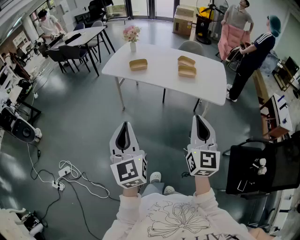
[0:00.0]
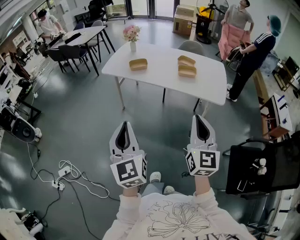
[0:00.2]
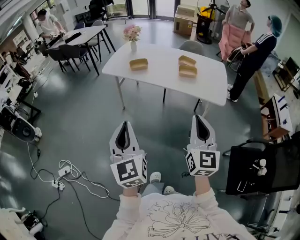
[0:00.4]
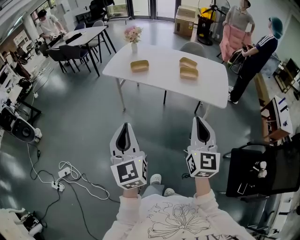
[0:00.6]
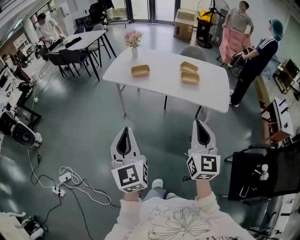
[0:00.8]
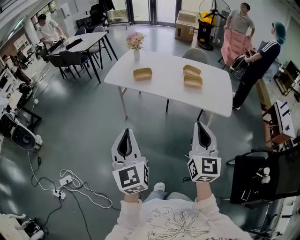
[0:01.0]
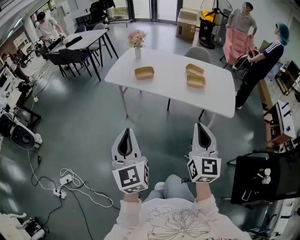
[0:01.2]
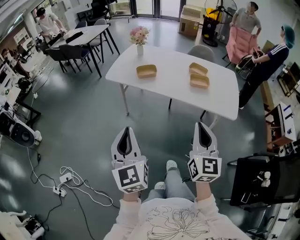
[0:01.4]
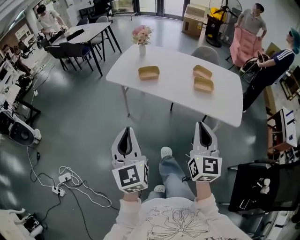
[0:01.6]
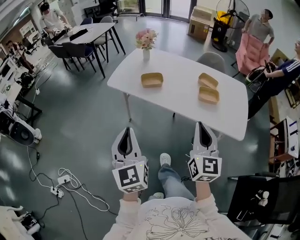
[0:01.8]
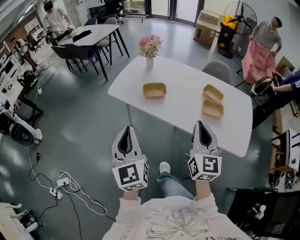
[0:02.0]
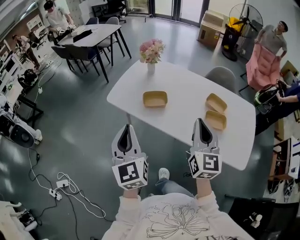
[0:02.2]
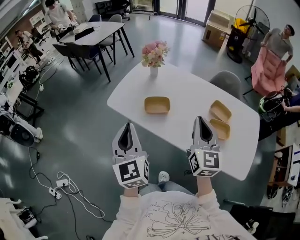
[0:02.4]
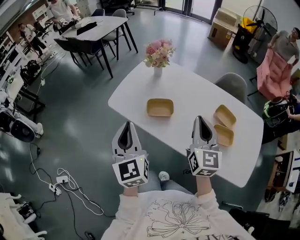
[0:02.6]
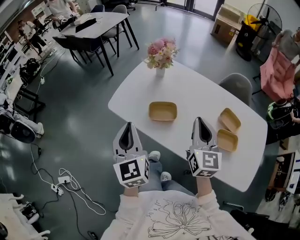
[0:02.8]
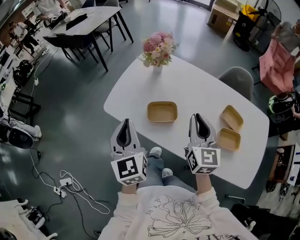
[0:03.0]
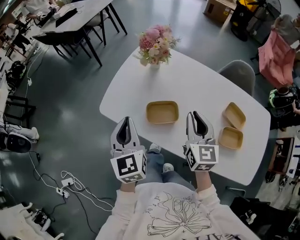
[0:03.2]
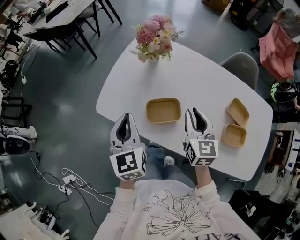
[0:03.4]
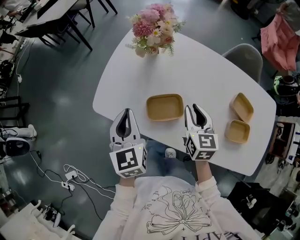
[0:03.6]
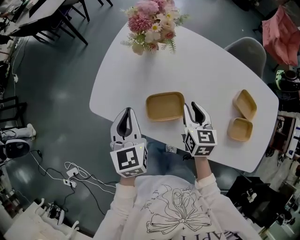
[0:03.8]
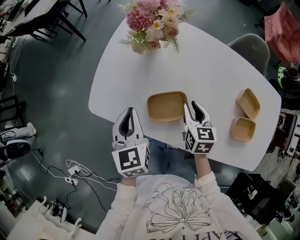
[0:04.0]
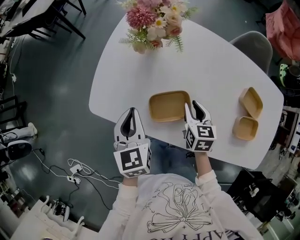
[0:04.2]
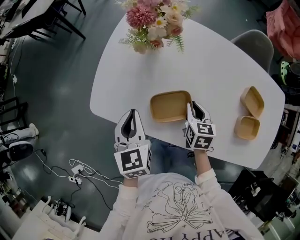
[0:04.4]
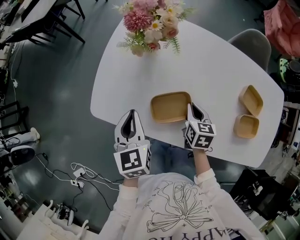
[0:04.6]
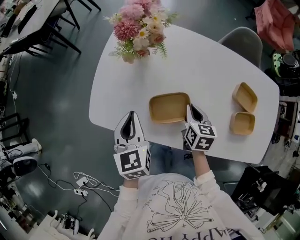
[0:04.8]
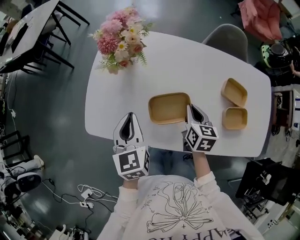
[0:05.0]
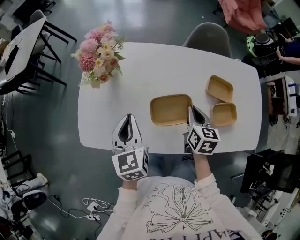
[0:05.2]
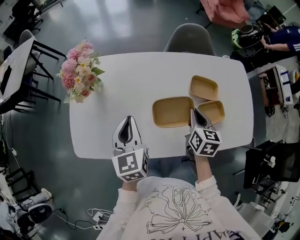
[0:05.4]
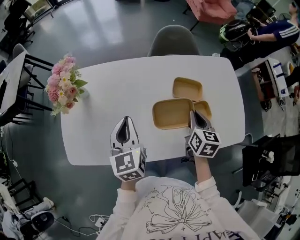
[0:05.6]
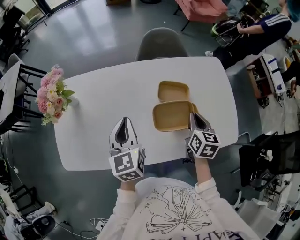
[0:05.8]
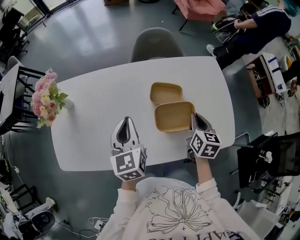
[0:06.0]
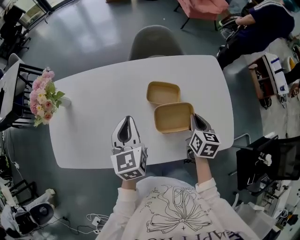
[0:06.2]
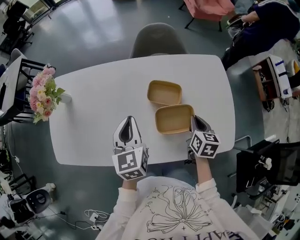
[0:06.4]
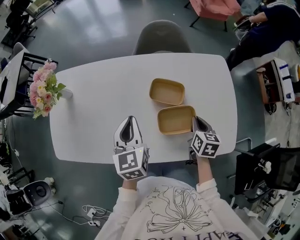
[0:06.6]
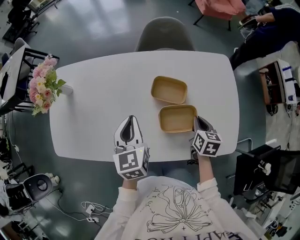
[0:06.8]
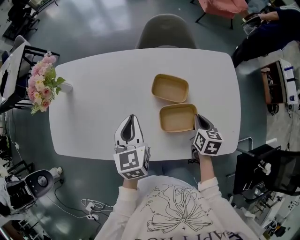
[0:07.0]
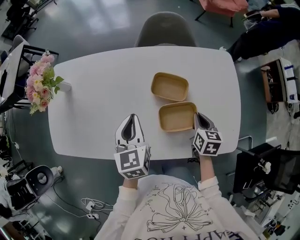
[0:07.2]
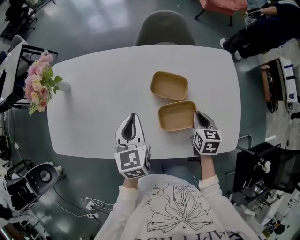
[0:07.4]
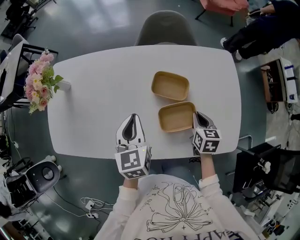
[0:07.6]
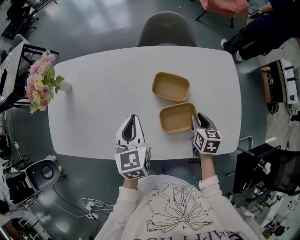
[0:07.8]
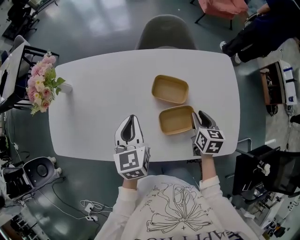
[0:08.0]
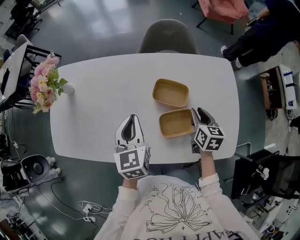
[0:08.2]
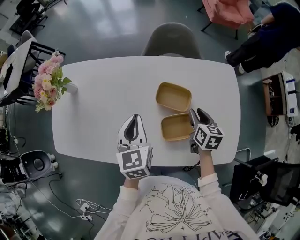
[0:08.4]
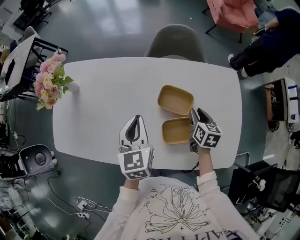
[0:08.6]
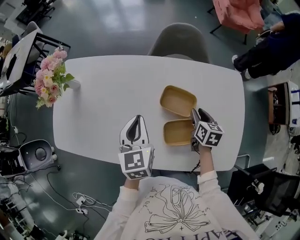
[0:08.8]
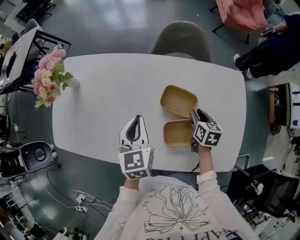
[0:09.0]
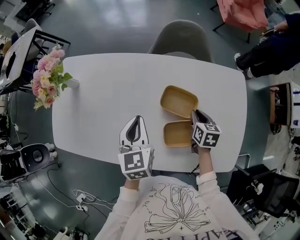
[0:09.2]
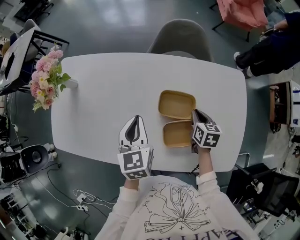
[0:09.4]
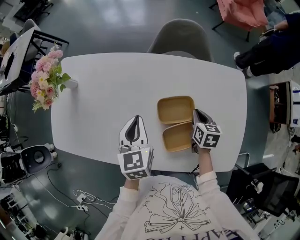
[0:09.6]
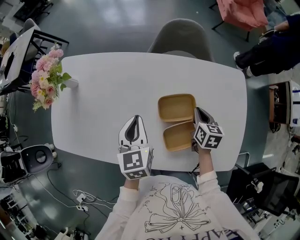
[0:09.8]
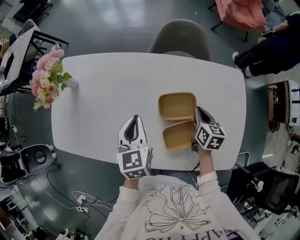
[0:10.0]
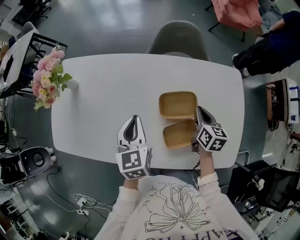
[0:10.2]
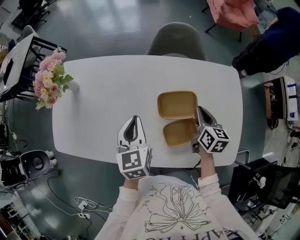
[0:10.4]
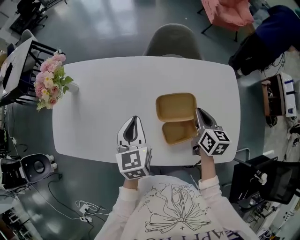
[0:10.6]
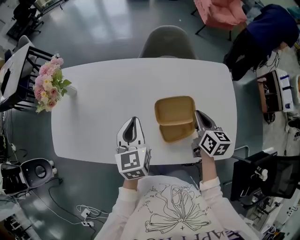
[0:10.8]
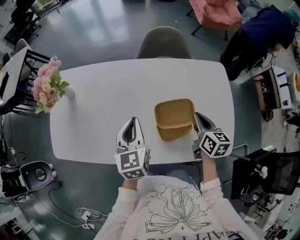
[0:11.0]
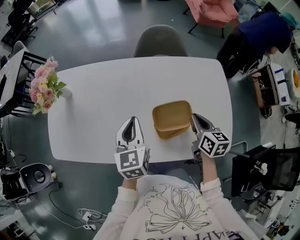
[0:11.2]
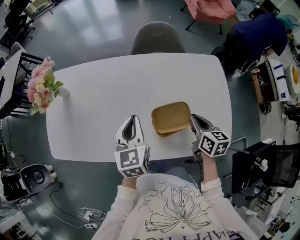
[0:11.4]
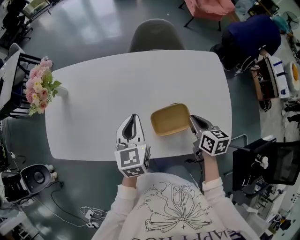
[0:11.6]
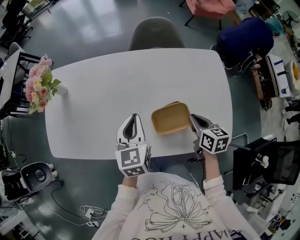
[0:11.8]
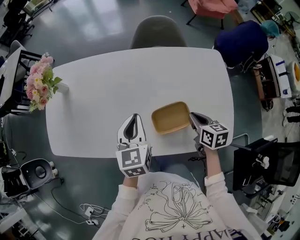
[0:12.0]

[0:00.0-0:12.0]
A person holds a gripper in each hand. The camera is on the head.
0:00.0 to 0:01.6: The grippers both shift forward by some 15 cm.
0:01.6 to 0:03.0: The pair of grippers is taken forward, about 50 cm.
0:03.0 to 0:04.4: The left gripper goes some 20 cm downward and forward, and swivels about 30 degrees. Meanwhile the right gripper travels downward by about 25 cm, and tips its fingers downward by approximately 40 degrees.
0:04.4 to 0:06.0: The left gripper ends up approximately 40 cm from where it was, and turns by approximately 30 degrees, while the right gripper shifts by some 50 cm, and swivels about 40 degrees.
0:06.0 to 0:07.6: The right gripper is displaced downward by roughly 10 cm, while the left gripper heads downward, covering some 5 cm.
0:07.6 to 0:09.0: The right gripper goes some 10 cm forward, and opens its fingers.
0:09.0 to 0:10.4: The right gripper travels upward by approximately 10 cm, and closes its fingers.
0:10.4 to 0:12.0: The left gripper travels backward by roughly 5 cm, while the right gripper travels backward by roughly 10 cm.

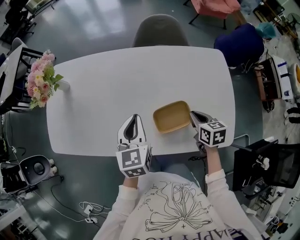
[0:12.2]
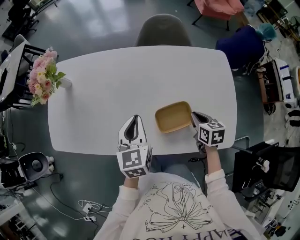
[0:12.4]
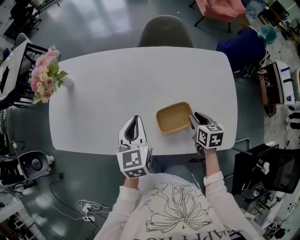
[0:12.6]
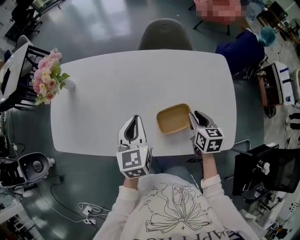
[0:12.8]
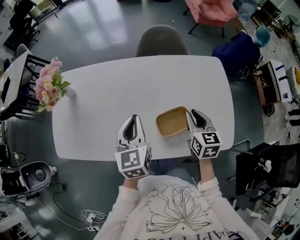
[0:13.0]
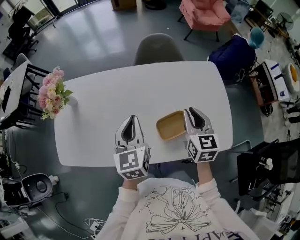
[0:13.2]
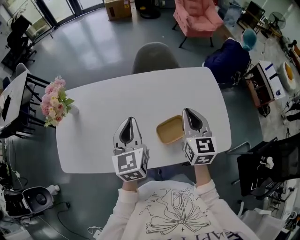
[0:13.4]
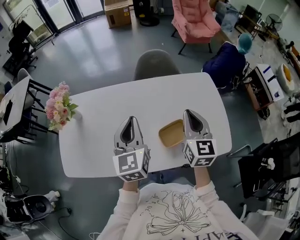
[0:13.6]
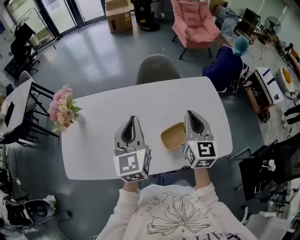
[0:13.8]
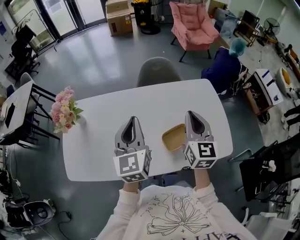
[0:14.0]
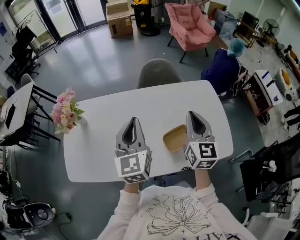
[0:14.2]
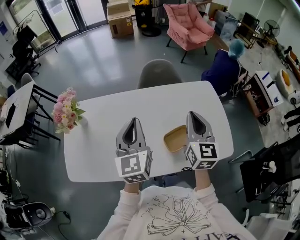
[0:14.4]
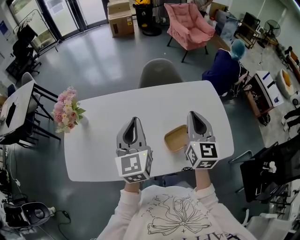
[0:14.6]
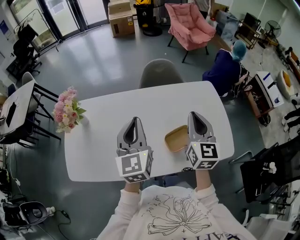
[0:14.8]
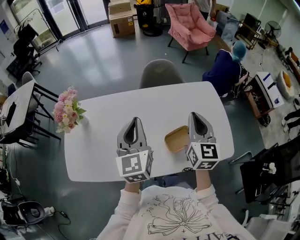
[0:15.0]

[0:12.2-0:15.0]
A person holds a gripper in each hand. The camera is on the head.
0:12.2 to 0:13.6: The right gripper moves upward, approximately 25 cm, angles its fingers upward, by approximately 30 degrees, and opens, then closes again; the left gripper goes some 15 cm upward.
0:13.6 to 0:15.0: There are only small adjustments of the grippers.

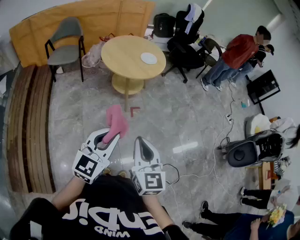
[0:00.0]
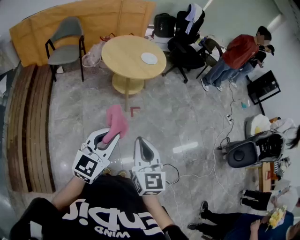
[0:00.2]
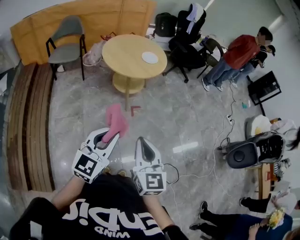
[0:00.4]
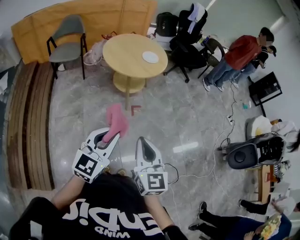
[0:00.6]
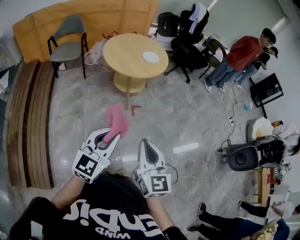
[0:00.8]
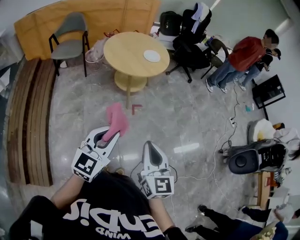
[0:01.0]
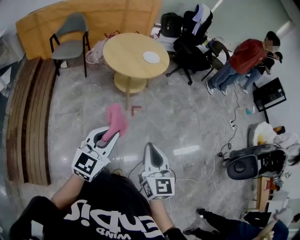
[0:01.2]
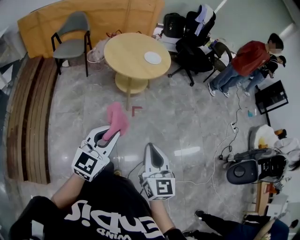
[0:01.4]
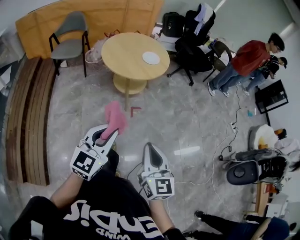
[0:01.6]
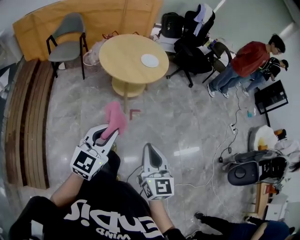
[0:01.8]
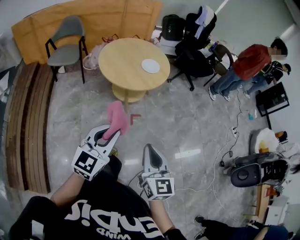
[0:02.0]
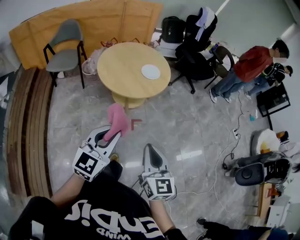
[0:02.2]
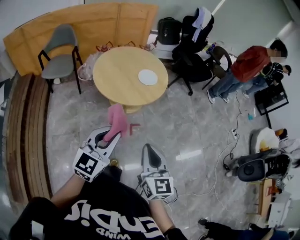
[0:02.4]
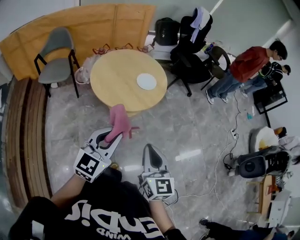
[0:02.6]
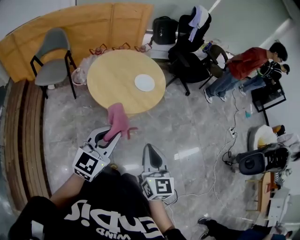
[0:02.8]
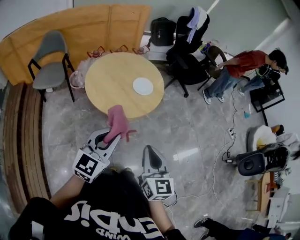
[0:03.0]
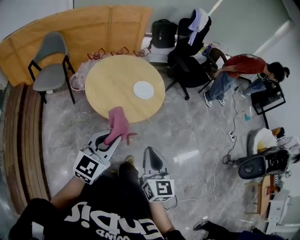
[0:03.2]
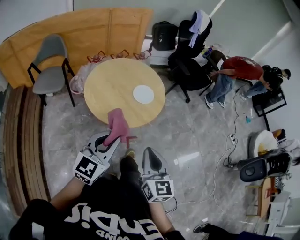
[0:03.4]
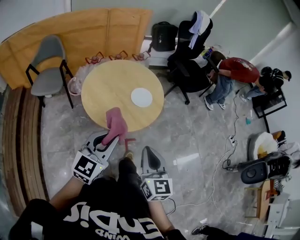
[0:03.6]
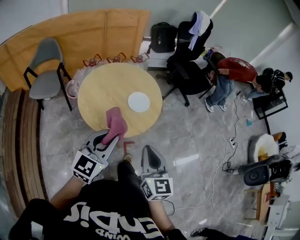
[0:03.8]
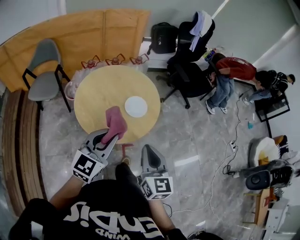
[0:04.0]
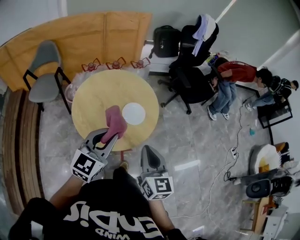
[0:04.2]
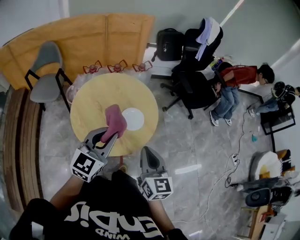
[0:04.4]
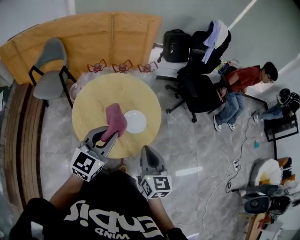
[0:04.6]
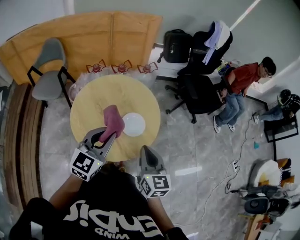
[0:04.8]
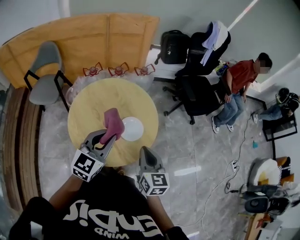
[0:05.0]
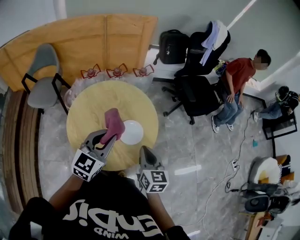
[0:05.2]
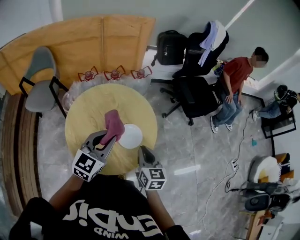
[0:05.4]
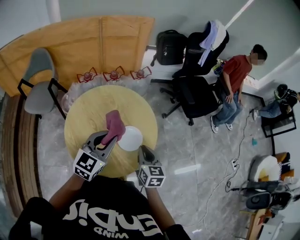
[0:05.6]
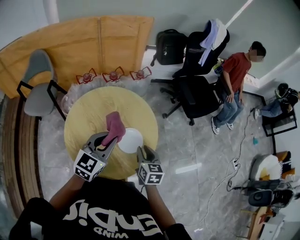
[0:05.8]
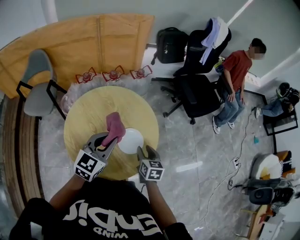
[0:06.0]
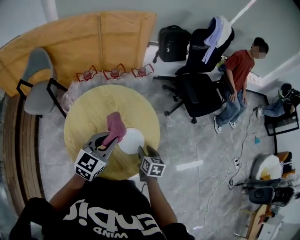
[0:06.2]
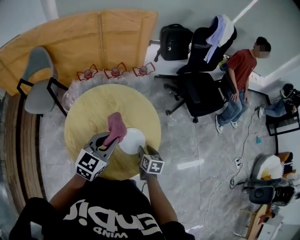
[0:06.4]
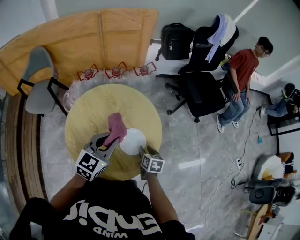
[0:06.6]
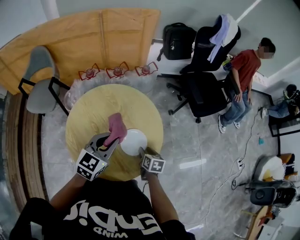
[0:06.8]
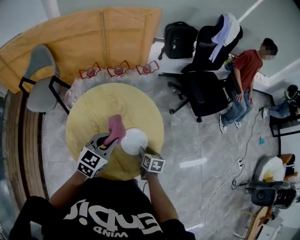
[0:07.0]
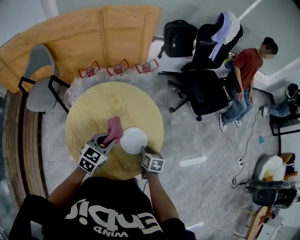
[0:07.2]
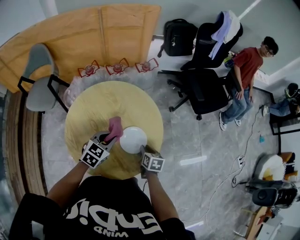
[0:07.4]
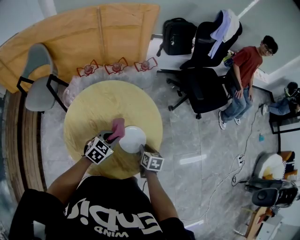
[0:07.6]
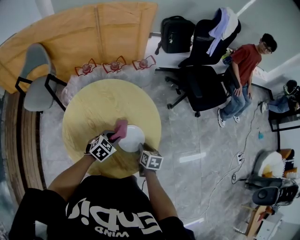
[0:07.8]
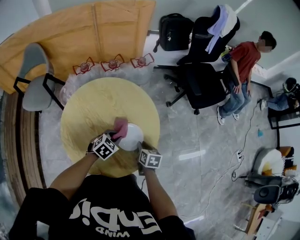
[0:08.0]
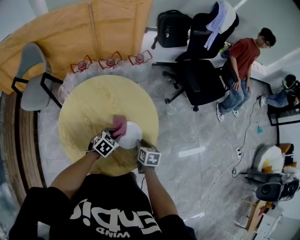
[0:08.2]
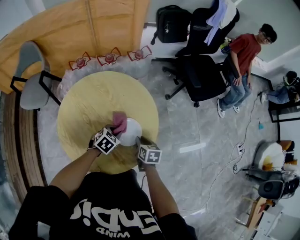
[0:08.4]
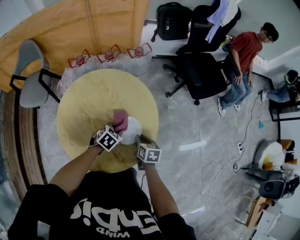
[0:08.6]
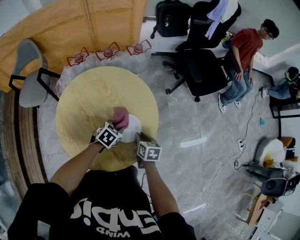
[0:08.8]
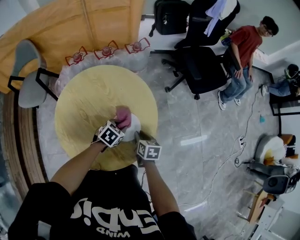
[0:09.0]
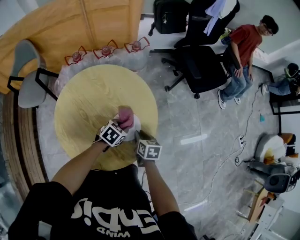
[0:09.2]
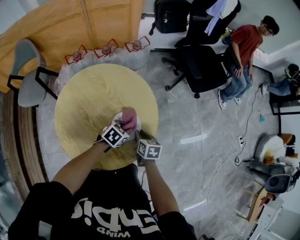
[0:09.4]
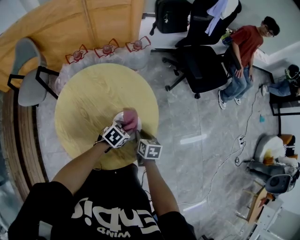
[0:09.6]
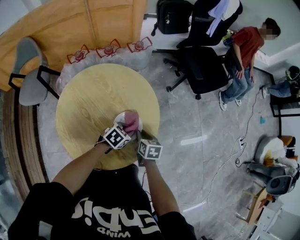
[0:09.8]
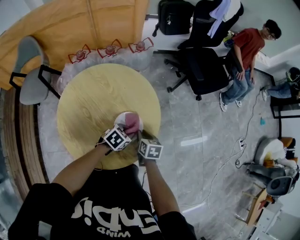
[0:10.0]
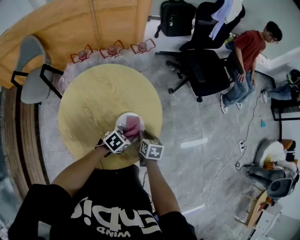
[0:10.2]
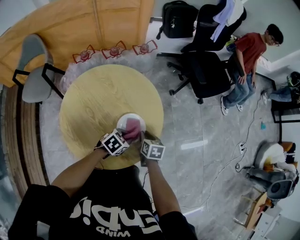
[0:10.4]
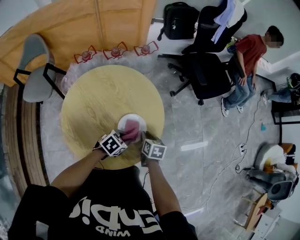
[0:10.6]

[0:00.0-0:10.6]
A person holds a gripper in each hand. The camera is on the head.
0:00.0 to 0:01.6: The left gripper is displaced forward by roughly 10 cm; the right gripper goes some 10 cm to the right and forward.
0:01.6 to 0:03.0: Both grippers travel together forward, approximately 30 cm.
0:03.0 to 0:04.6: The two grippers go roughly 30 cm forward.
0:04.6 to 0:06.0: The left gripper goes roughly 15 cm forward and downward. Meanwhile the right gripper moves downward and forward, about 25 cm, rotates roughly 30 degrees, and opens.
0:06.0 to 0:07.6: The left gripper goes about 20 cm downward, and changes its angle by roughly 30 degrees. Meanwhile the right gripper travels downward by some 10 cm.
0:07.6 to 0:09.0: The left gripper heads to the right and downward, covering about 10 cm.
0:09.0 to 0:10.6: The left gripper shifts some 5 cm backward.
